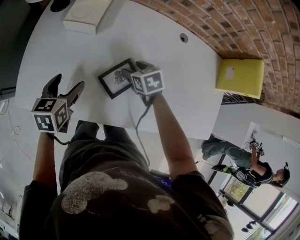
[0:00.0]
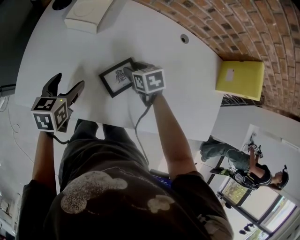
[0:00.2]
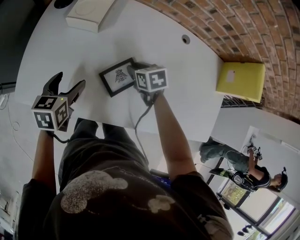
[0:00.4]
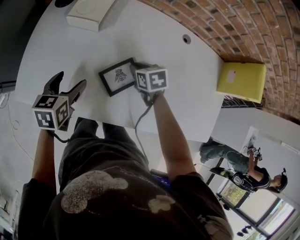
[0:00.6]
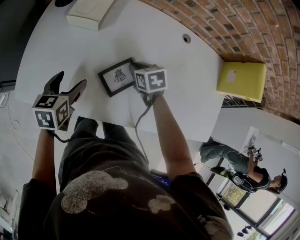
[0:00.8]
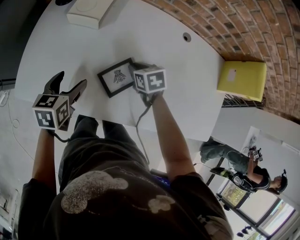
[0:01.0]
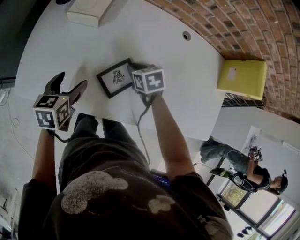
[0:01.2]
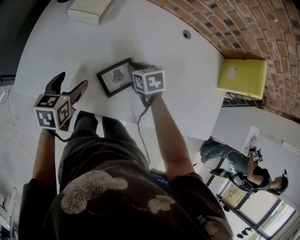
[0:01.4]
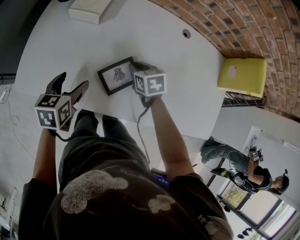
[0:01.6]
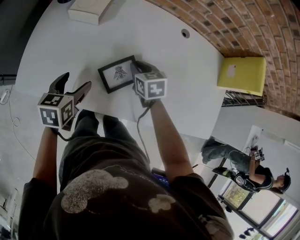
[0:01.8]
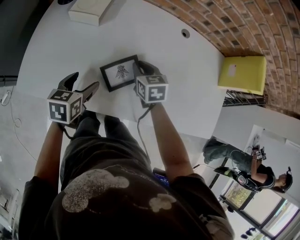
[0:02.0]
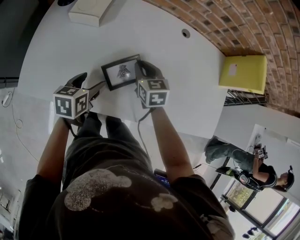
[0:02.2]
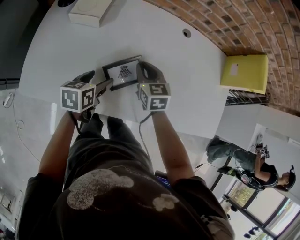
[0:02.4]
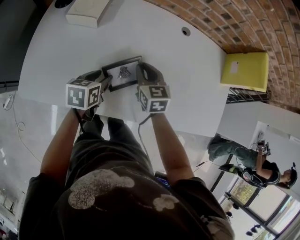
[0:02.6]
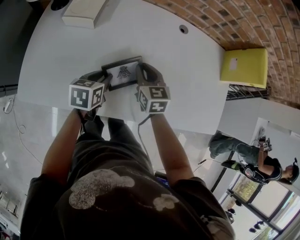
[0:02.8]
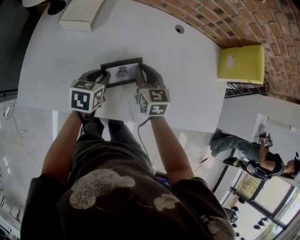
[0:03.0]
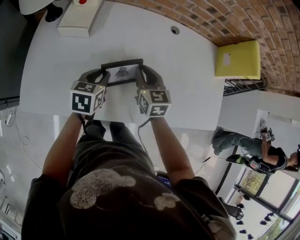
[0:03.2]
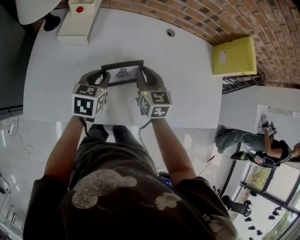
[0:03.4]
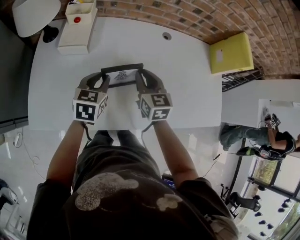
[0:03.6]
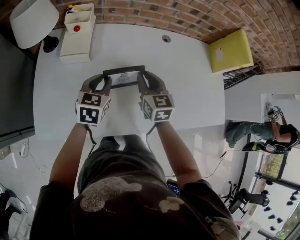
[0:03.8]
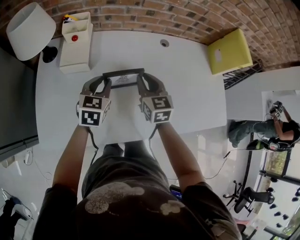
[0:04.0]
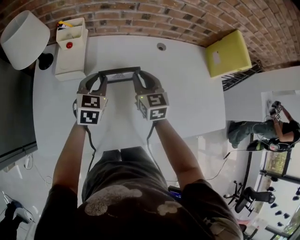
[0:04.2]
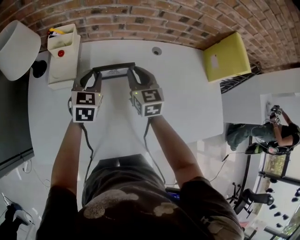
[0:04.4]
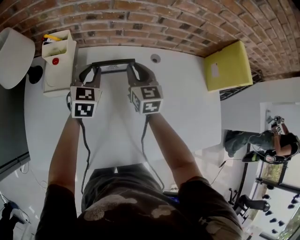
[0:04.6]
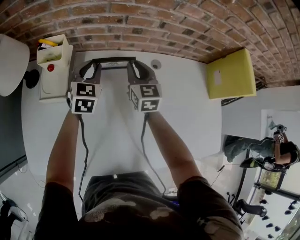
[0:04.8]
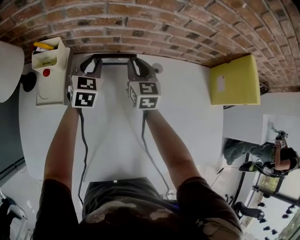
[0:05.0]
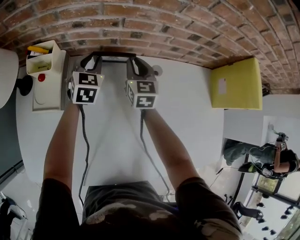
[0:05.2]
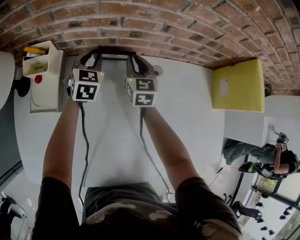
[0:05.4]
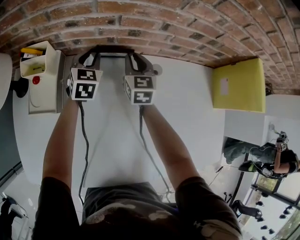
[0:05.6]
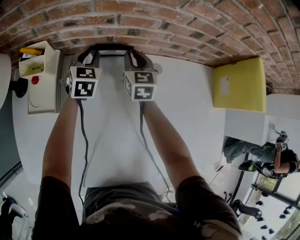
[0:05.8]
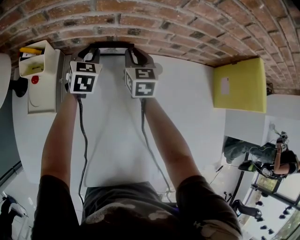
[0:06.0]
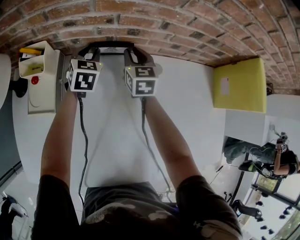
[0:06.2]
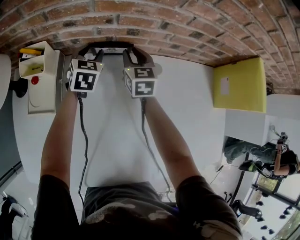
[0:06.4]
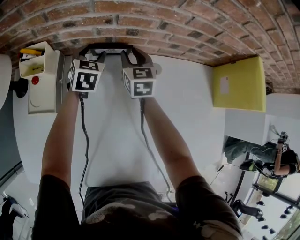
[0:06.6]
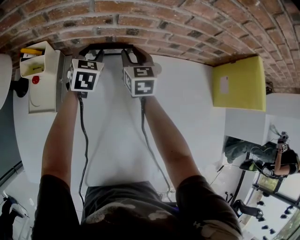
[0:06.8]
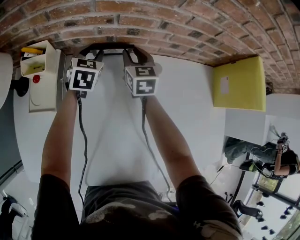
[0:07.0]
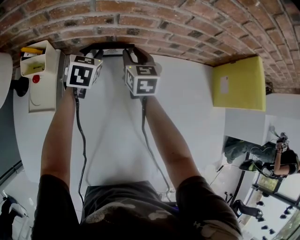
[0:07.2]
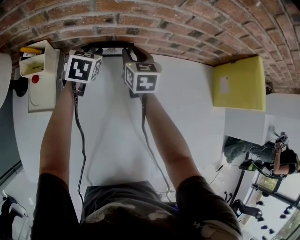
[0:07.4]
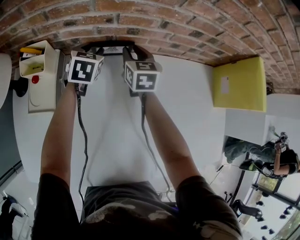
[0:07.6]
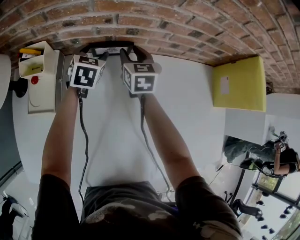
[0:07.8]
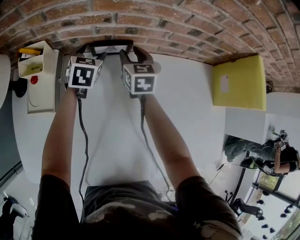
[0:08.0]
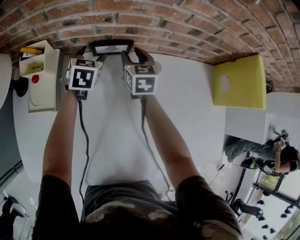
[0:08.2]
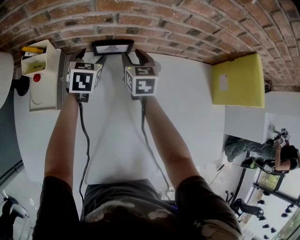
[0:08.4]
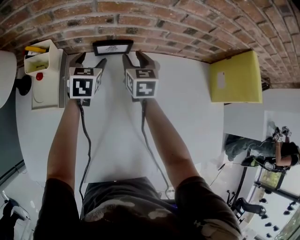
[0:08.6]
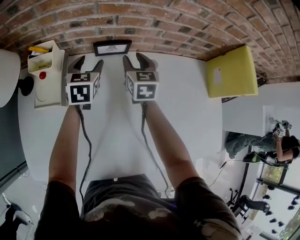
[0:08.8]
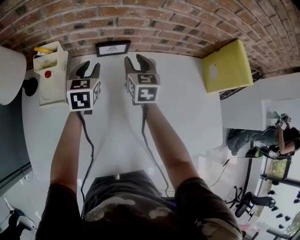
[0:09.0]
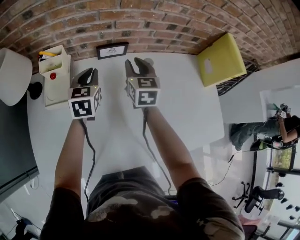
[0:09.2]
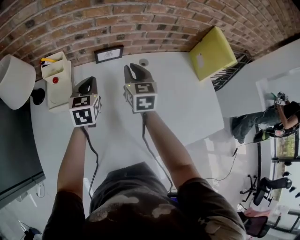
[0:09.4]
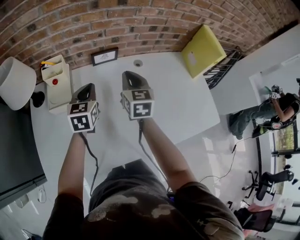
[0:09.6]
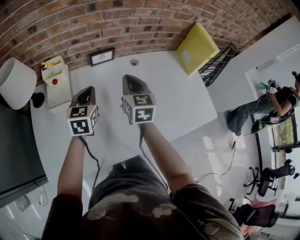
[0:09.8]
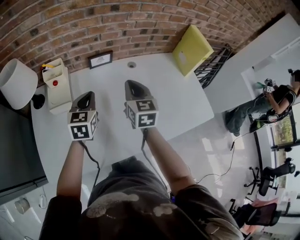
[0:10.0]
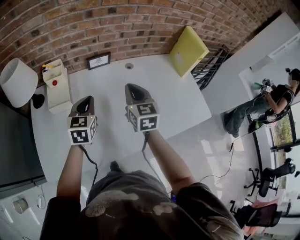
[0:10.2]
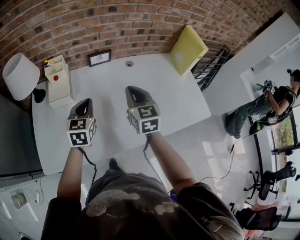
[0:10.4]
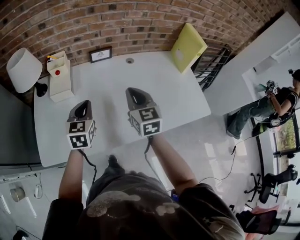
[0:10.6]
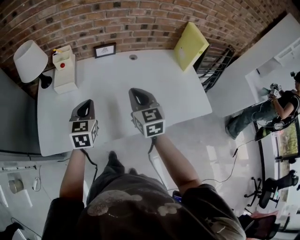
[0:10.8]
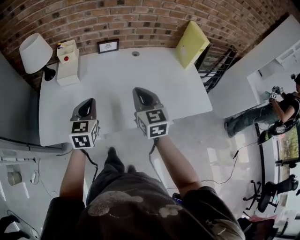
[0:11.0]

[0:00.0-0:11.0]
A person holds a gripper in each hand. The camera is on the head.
0:00.0 to 0:01.6: The right gripper closes up; the left gripper goes some 5 cm backward.
0:01.6 to 0:03.2: The right gripper heads upward, covering some 10 cm, and swivels some 30 degrees; the left gripper travels to the right and forward by roughly 10 cm, and closes.
0:03.2 to 0:04.8: The two grippers go about 25 cm forward. The left gripper rotates some 30 degrees.
0:04.8 to 0:06.2: Both grippers move forward and downward, some 10 cm.
0:06.2 to 0:07.8: The left gripper opens its fingers.
0:07.8 to 0:09.4: The two grippers go some 20 cm backward and upward. The left gripper closes up.
0:09.4 to 0:11.0: Both grippers move backward, roughly 30 cm.

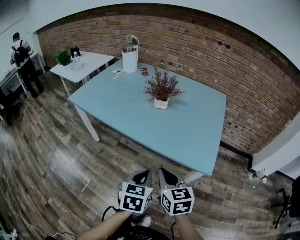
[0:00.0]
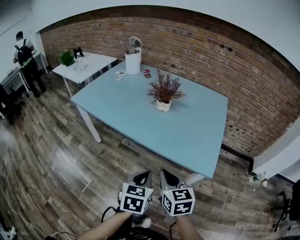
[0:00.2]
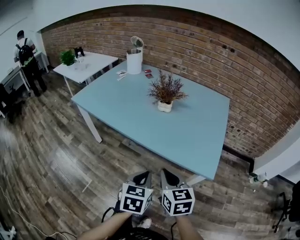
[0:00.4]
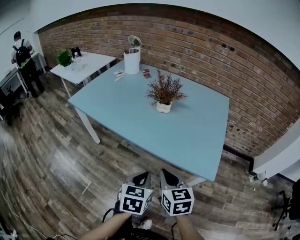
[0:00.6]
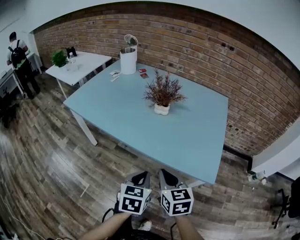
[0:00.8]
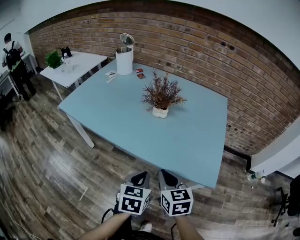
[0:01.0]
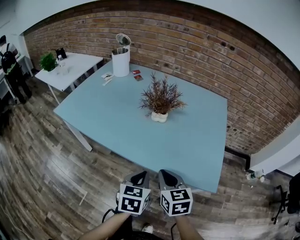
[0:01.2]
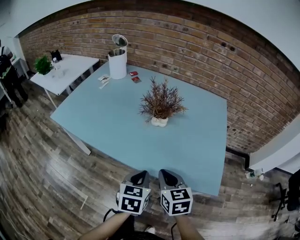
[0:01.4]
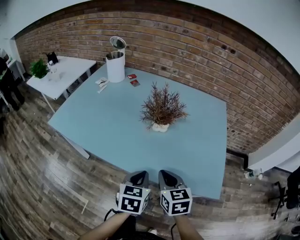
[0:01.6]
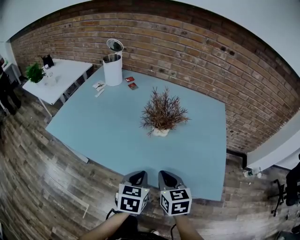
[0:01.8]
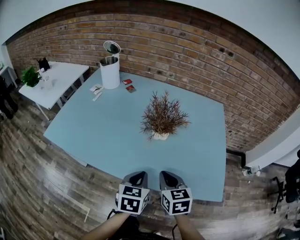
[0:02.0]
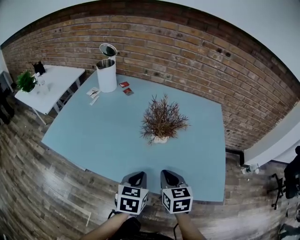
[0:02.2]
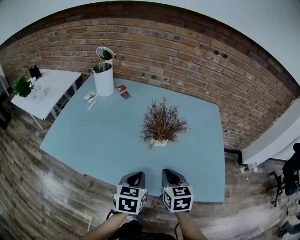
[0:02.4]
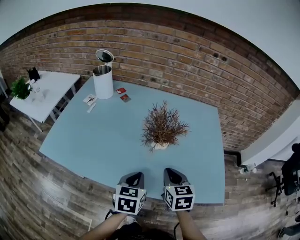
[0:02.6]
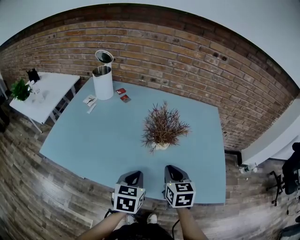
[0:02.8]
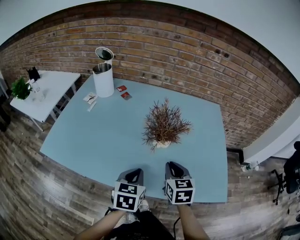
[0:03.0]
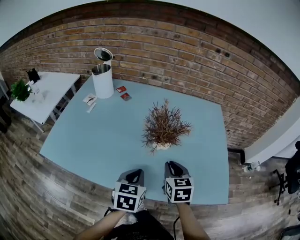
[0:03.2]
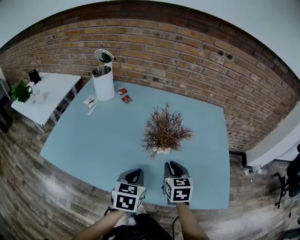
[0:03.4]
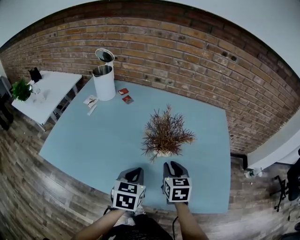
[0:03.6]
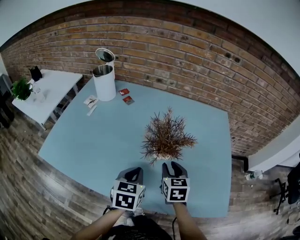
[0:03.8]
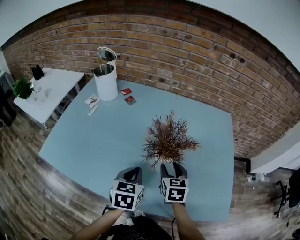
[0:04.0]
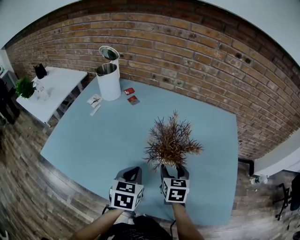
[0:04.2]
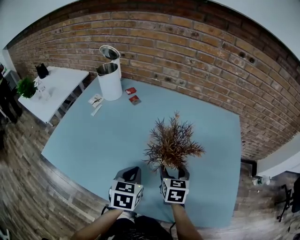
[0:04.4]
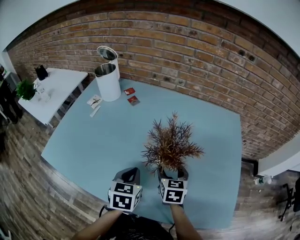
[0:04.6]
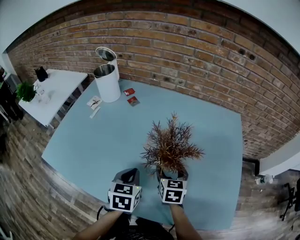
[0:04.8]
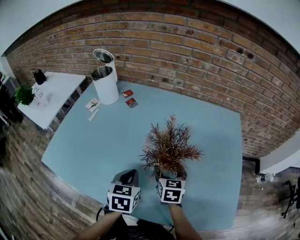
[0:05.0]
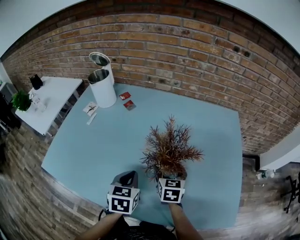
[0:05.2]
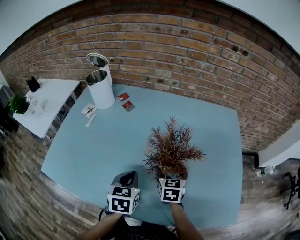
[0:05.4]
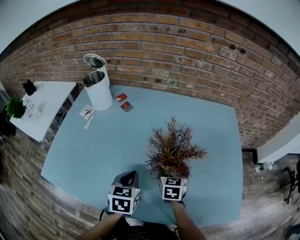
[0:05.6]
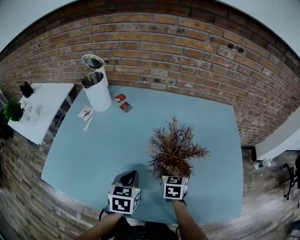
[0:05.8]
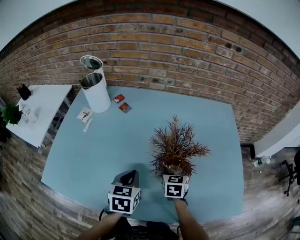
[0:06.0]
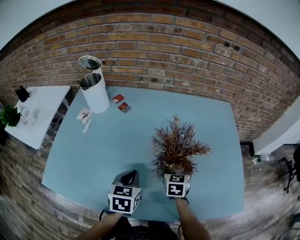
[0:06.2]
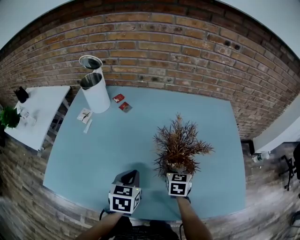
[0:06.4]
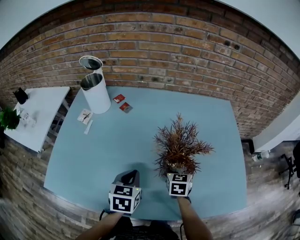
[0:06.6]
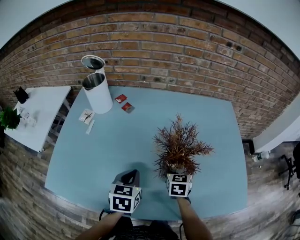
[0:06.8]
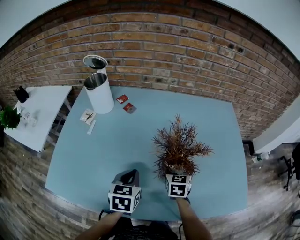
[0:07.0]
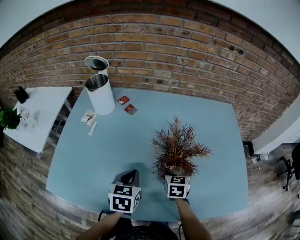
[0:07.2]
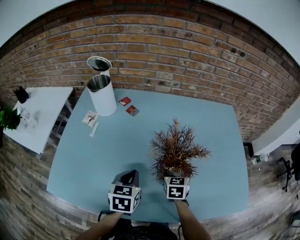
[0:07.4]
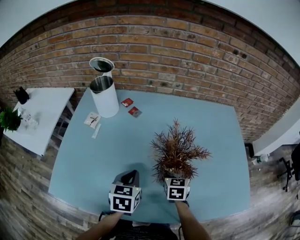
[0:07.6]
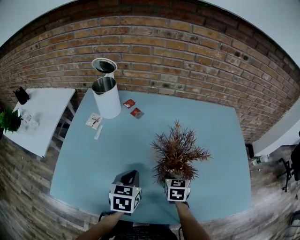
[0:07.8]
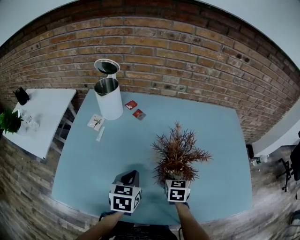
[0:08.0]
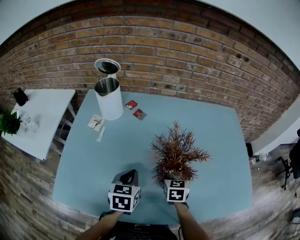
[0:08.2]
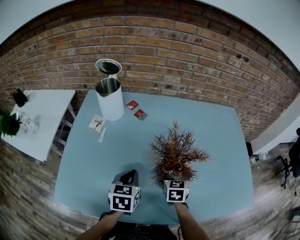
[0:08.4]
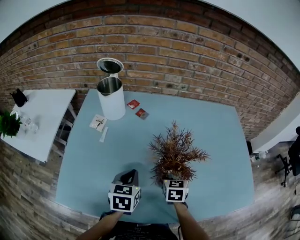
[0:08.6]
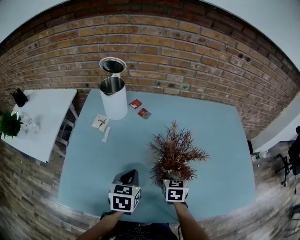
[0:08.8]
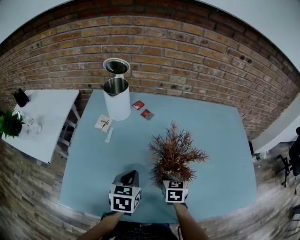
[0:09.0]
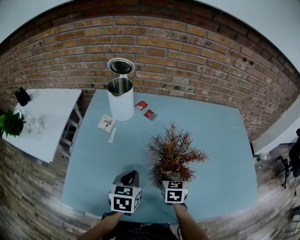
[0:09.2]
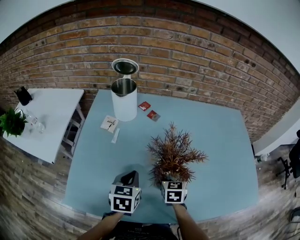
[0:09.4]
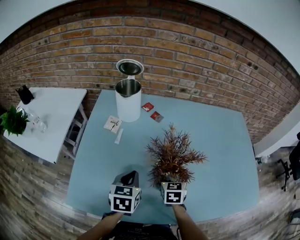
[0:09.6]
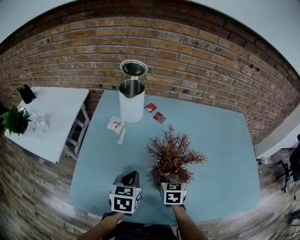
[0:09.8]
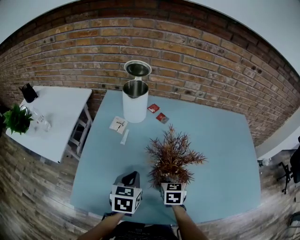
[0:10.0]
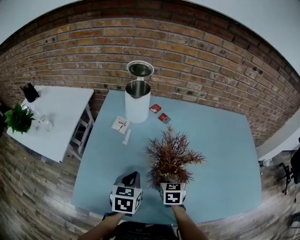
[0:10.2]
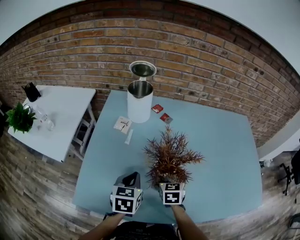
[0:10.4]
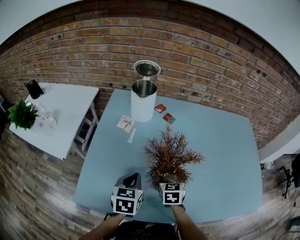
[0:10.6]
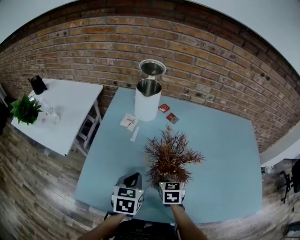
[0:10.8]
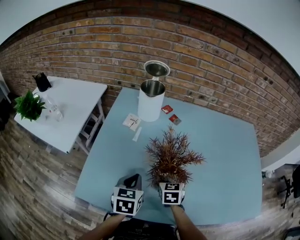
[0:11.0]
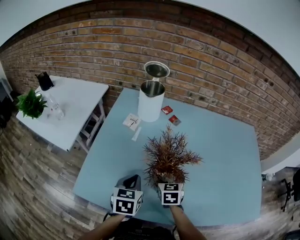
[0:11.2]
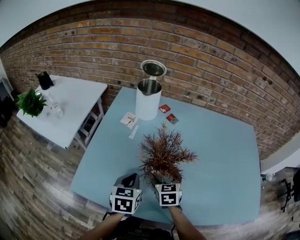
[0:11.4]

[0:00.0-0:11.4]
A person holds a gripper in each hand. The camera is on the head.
0:00.0 to 0:01.4: The grippers both shift forward by about 15 cm.
0:01.4 to 0:02.8: The left gripper shifts approximately 15 cm forward and to the left. Meanwhile the right gripper heads forward, covering approximately 15 cm.
0:02.8 to 0:04.2: The right gripper goes some 15 cm forward and downward, and opens its fingers; the left gripper shifts roughly 10 cm forward.
0:04.2 to 0:05.6: The right gripper changes place by about 5 cm, and opens up.
0:05.6 to 0:07.2: The left gripper shifts some 5 cm to the left.
0:07.2 to 0:08.6: Both grippers move to the left, about 10 cm.
0:08.6 to 0:10.0: Both grippers move to the left, roughly 10 cm.
0:10.0 to 0:11.4: The right gripper is displaced to the left by roughly 5 cm.

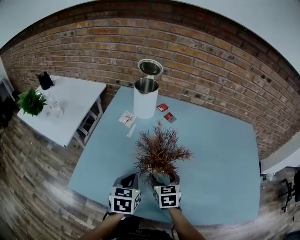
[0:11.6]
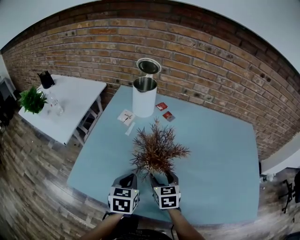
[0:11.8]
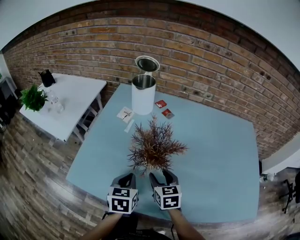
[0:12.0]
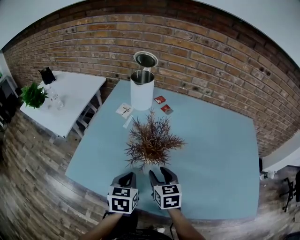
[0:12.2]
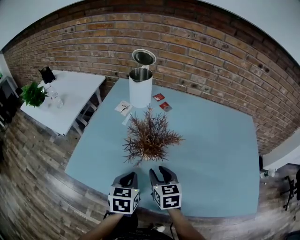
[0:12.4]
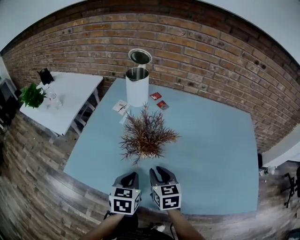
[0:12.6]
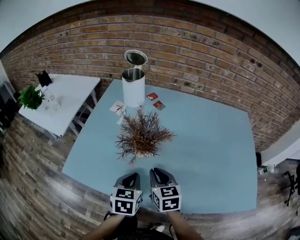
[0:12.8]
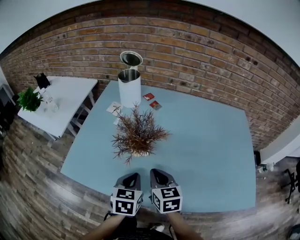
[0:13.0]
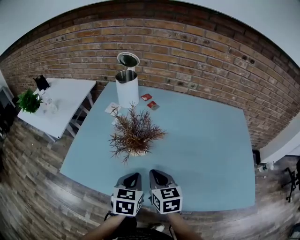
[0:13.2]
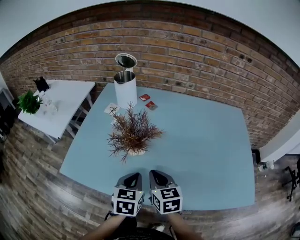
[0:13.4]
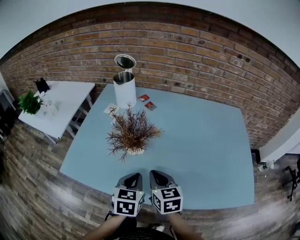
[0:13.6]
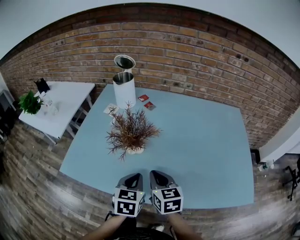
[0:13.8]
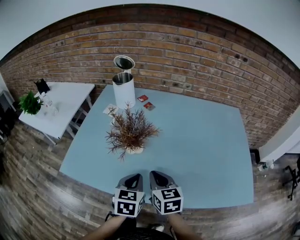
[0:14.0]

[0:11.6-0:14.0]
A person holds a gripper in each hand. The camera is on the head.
0:11.6 to 0:12.8: The right gripper goes about 10 cm backward and upward, and closes its fingers; the left gripper travels to the right and backward by approximately 10 cm.
0:12.8 to 0:14.0: The right gripper moves roughly 5 cm, while the left gripper goes approximately 5 cm to the right.
